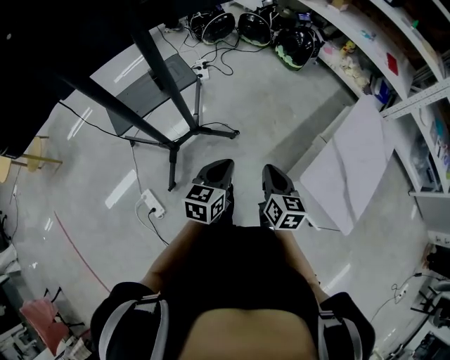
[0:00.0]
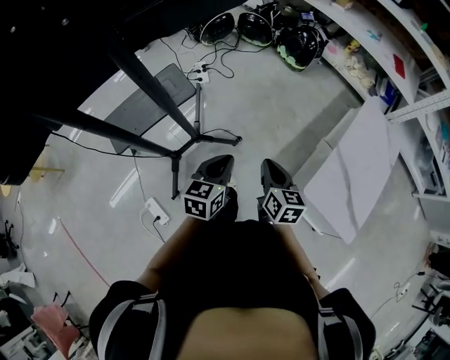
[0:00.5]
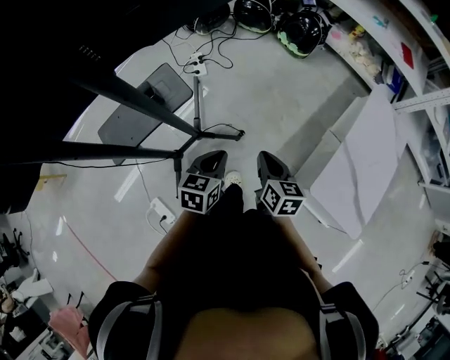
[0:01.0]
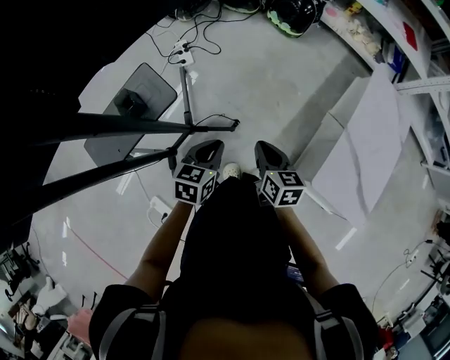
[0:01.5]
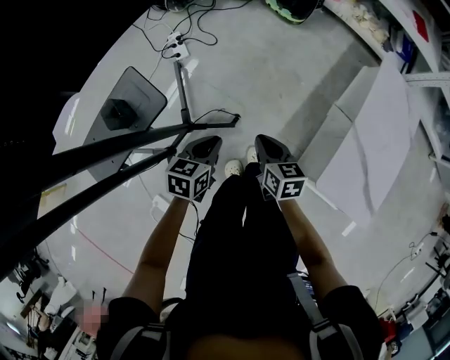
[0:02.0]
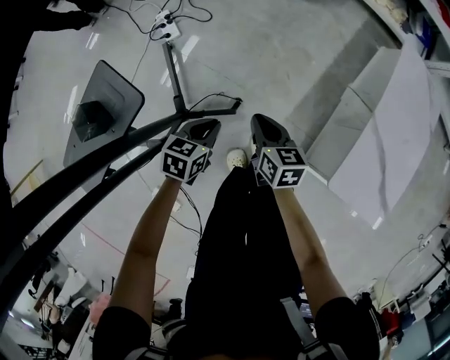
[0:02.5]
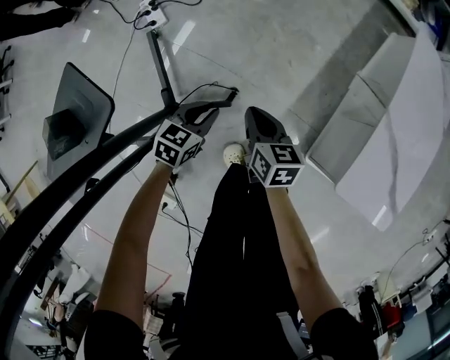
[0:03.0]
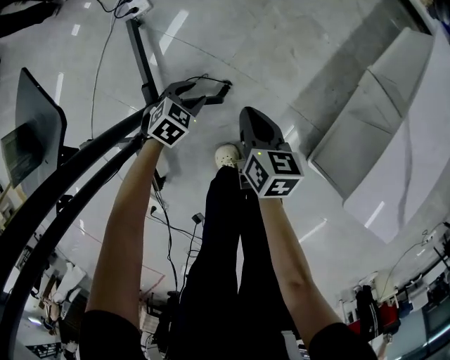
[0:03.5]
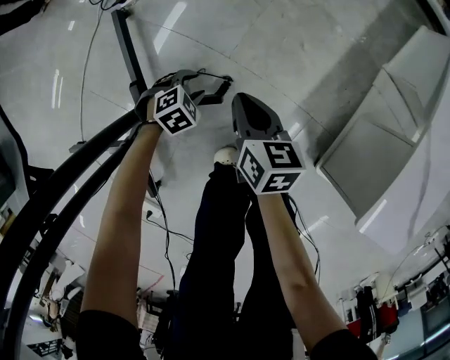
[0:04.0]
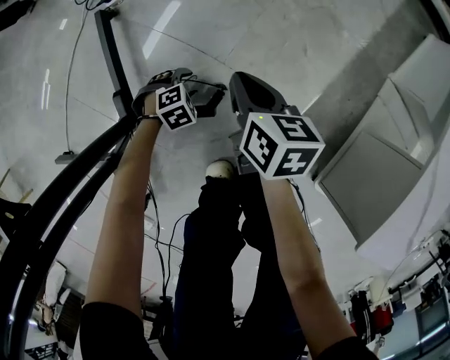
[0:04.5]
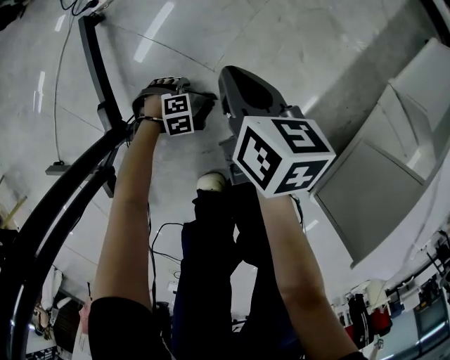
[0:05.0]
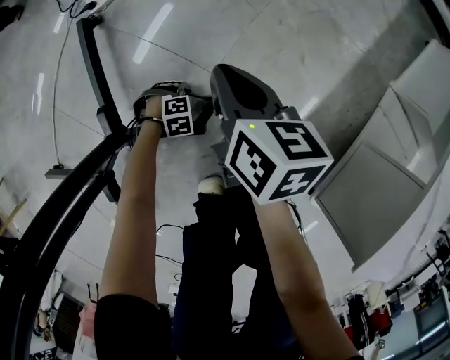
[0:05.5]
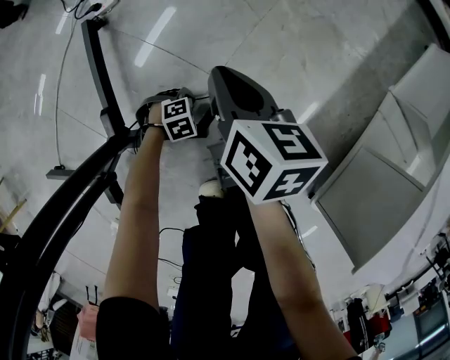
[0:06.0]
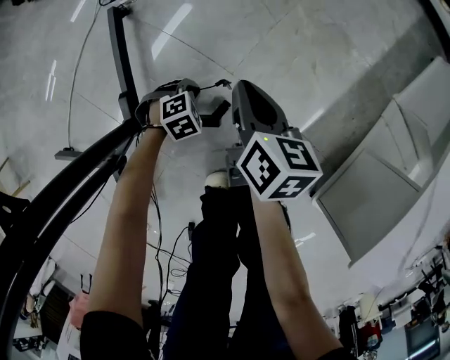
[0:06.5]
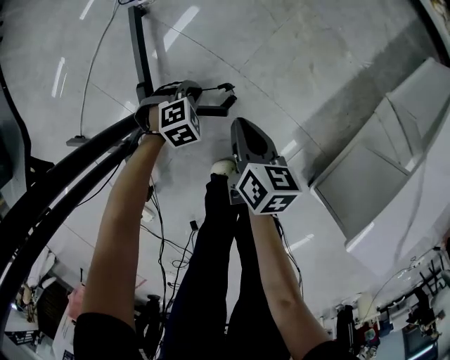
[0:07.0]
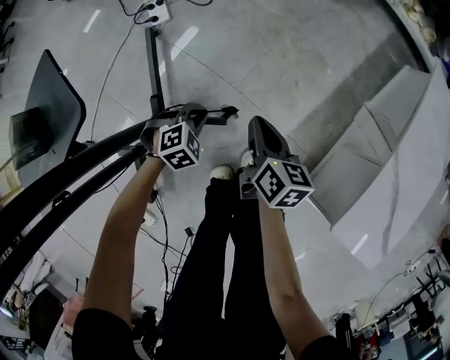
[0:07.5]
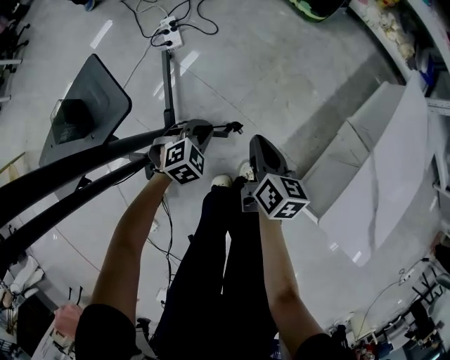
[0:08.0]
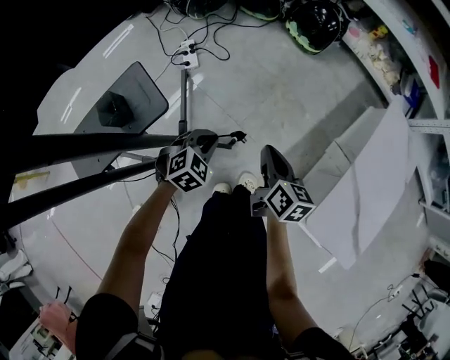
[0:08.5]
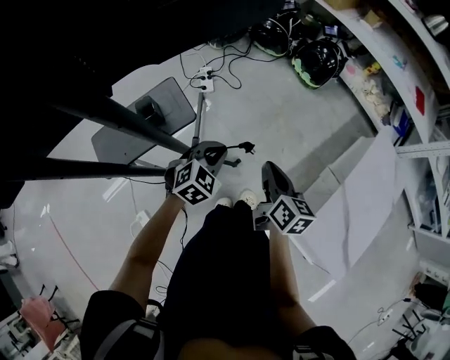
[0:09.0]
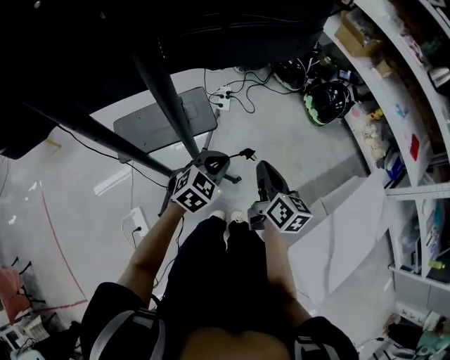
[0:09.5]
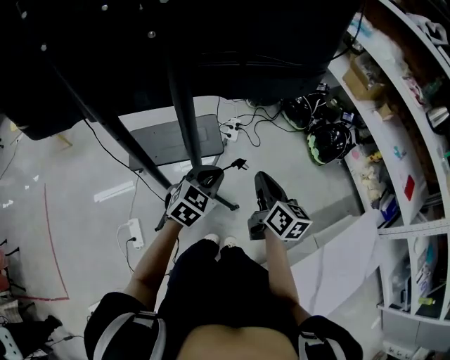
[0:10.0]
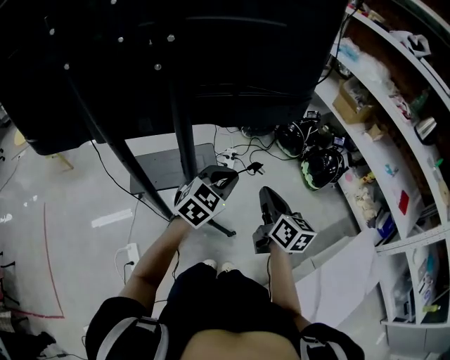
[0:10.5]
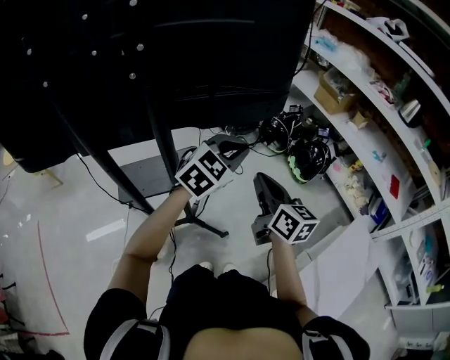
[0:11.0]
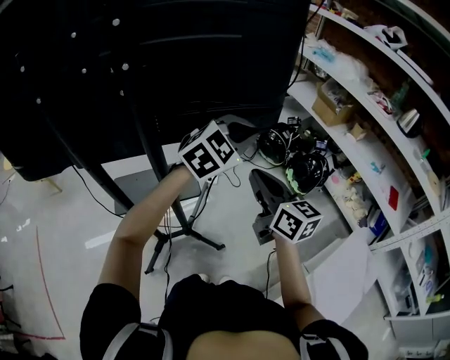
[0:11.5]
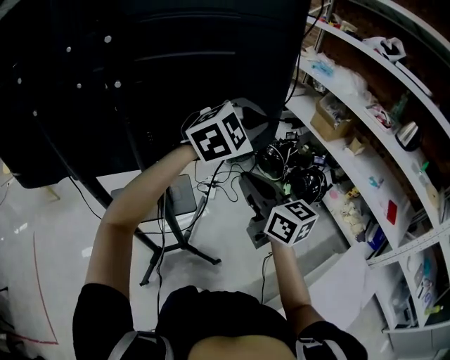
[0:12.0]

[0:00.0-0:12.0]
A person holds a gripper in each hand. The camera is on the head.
0:00.0 to 0:02.0: The grippers both shift forward and downward by some 30 cm. The left gripper rotates approximately 20 degrees.
0:02.0 to 0:04.0: The left gripper moves downward, some 50 cm, rotates around the line of its fingers by approximately 50 degrees, clockwise from behind, and opens up; the right gripper shifts roughly 35 cm downward.
0:04.0 to 0:06.0: The left gripper heads downward, covering approximately 20 cm, and closes. The right gripper ends up some 10 cm from where it was.
0:06.0 to 0:08.0: The left gripper goes approximately 50 cm upward, and turns by some 30 degrees, while the right gripper moves upward, some 25 cm.
0:08.0 to 0:10.0: The grippers both shift upward by about 40 cm. The right gripper turns by some 40 degrees, while the left gripper swivels roughly 50 degrees.
0:10.0 to 0:12.0: The right gripper is displaced upward by roughly 20 cm, and rotates about 30 degrees. Meanwhile the left gripper shifts some 40 cm upward, forward and to the right, and changes its angle by some 40 degrees.

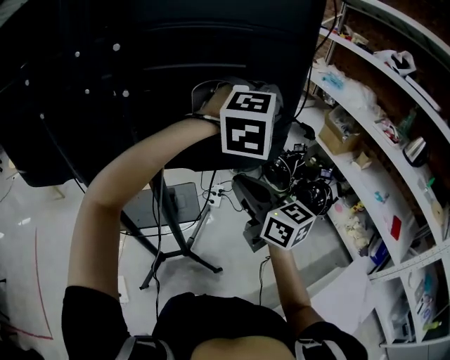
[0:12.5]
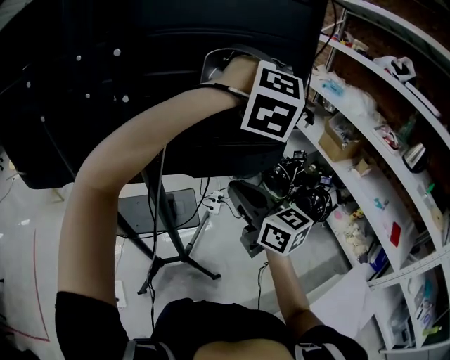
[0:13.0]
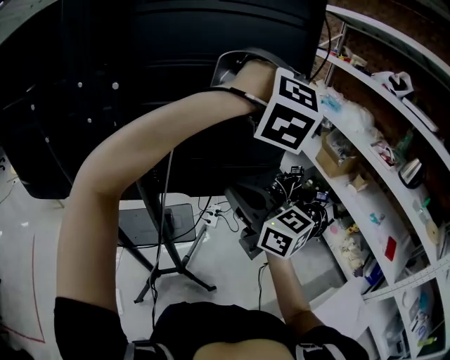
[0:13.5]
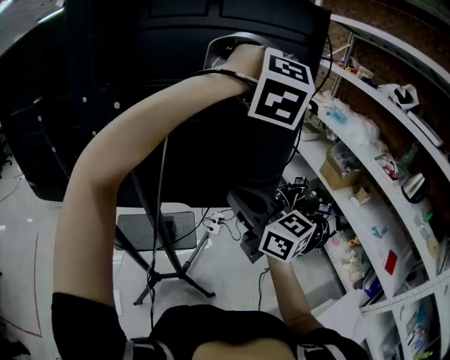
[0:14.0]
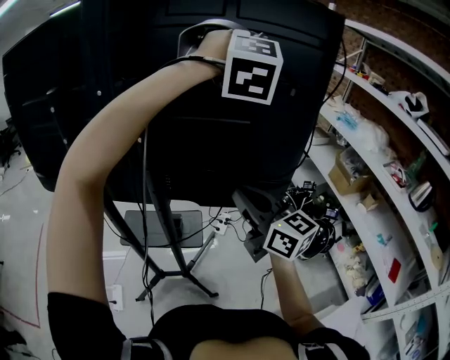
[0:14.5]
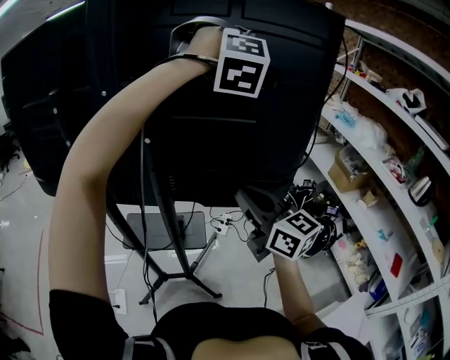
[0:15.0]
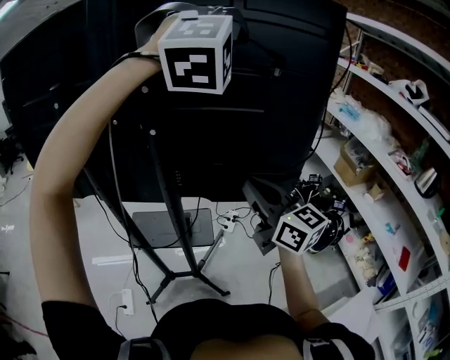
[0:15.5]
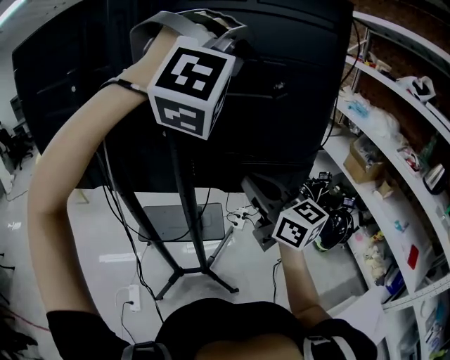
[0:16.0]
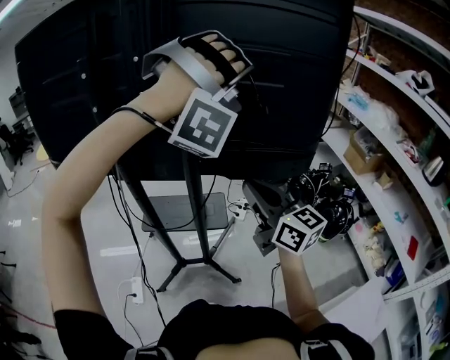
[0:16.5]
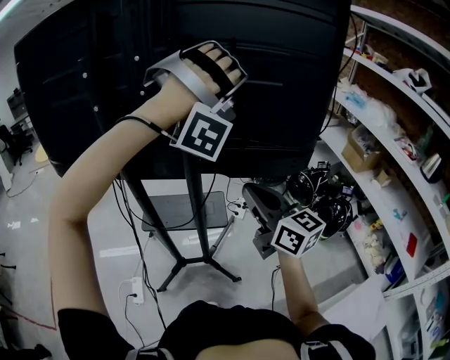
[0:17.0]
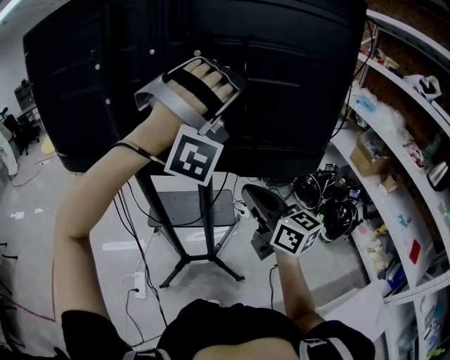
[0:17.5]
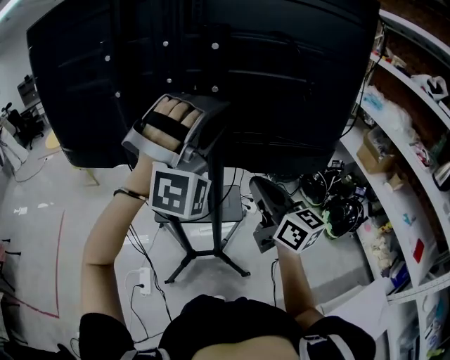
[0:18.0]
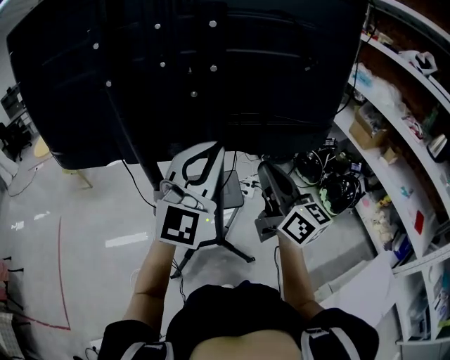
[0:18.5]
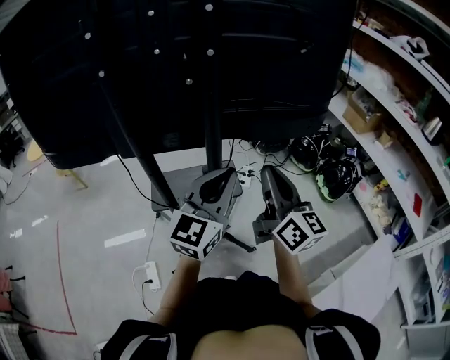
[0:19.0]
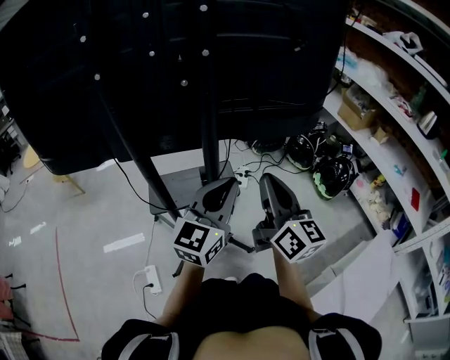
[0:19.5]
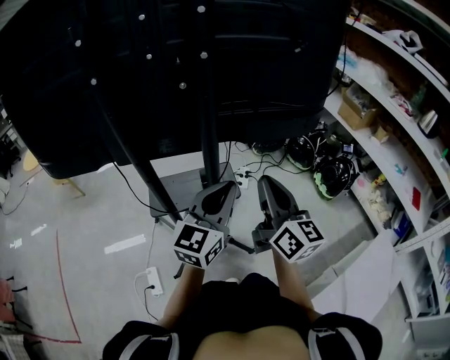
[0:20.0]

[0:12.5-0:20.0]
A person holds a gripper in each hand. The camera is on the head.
0:12.5 to 0:14.5: The right gripper shifts some 10 cm upward; the left gripper moves upward and forward, some 25 cm, and turns by about 30 degrees.
0:14.5 to 0:16.5: The left gripper shifts roughly 20 cm to the left, backward and downward, and turns by some 40 degrees, while the right gripper heads to the left and downward, covering some 10 cm.
0:16.5 to 0:18.0: The right gripper moves about 5 cm. The left gripper heads to the left and downward, covering roughly 15 cm, rotates approximately 30 degrees, and opens.
0:18.0 to 0:20.0: The left gripper moves downward, some 20 cm, rotates around the line of its fingers by about 100 degrees, counterclockwise from behind, and closes. The right gripper heads downward, covering some 5 cm, and rotates about 20 degrees.

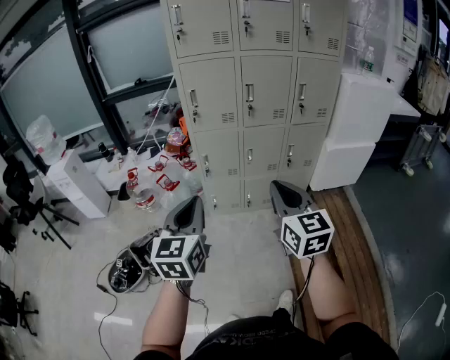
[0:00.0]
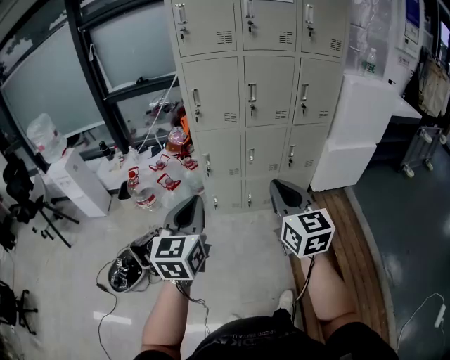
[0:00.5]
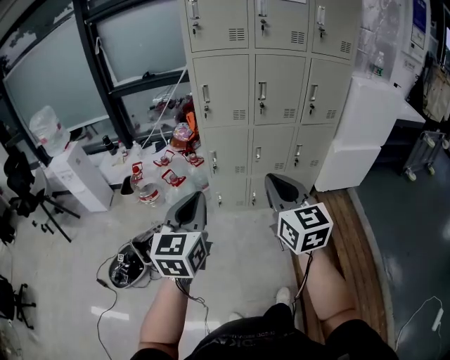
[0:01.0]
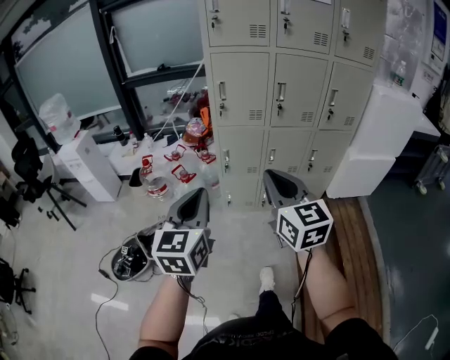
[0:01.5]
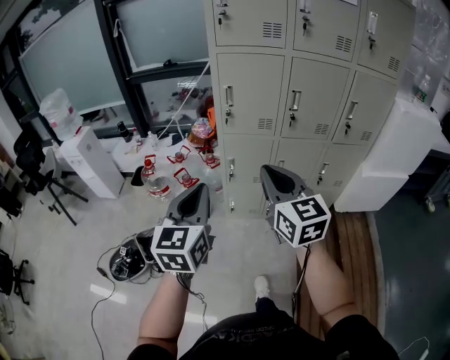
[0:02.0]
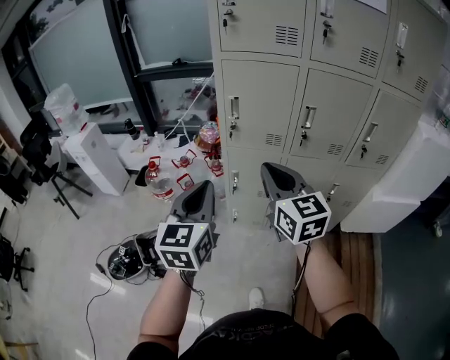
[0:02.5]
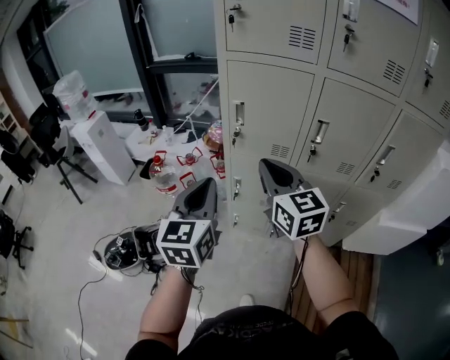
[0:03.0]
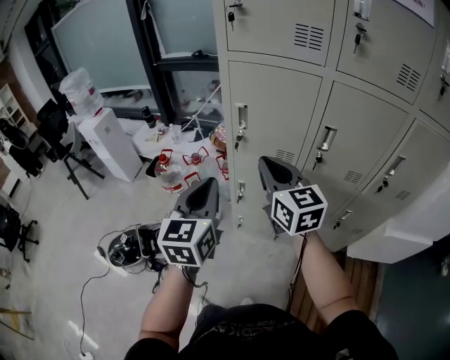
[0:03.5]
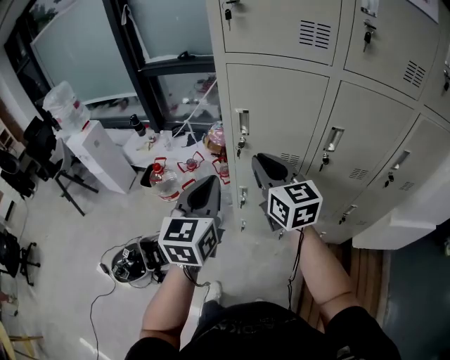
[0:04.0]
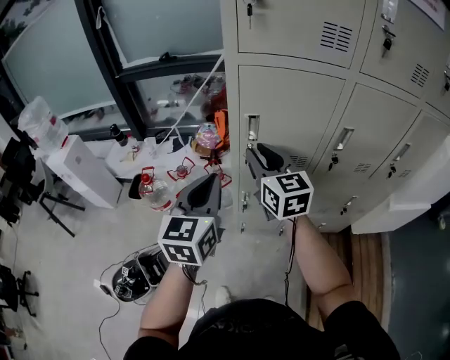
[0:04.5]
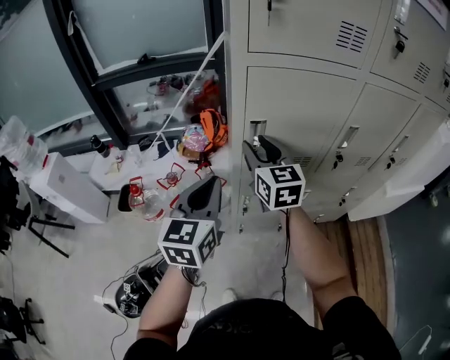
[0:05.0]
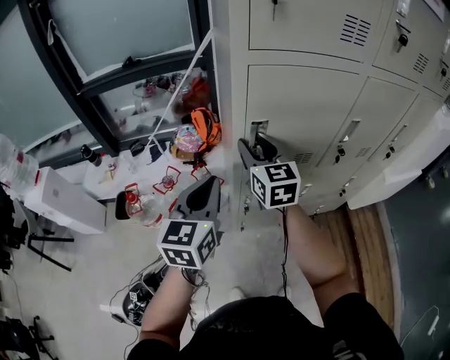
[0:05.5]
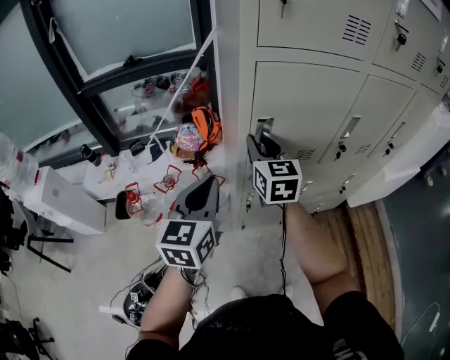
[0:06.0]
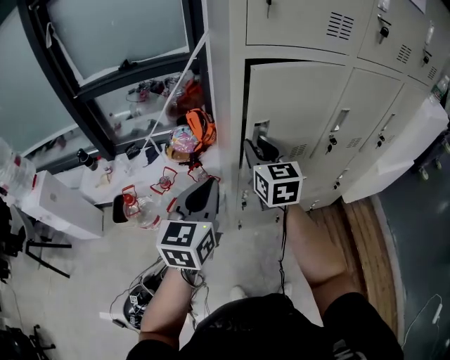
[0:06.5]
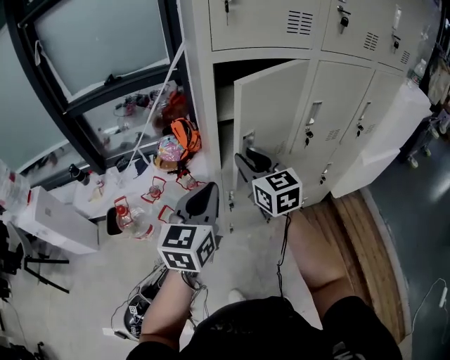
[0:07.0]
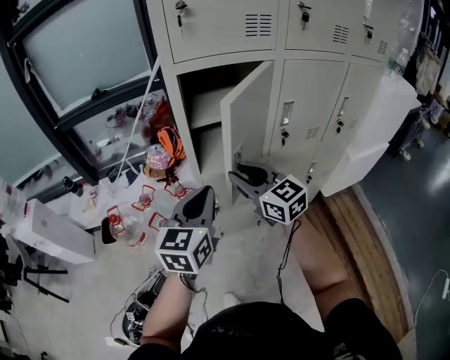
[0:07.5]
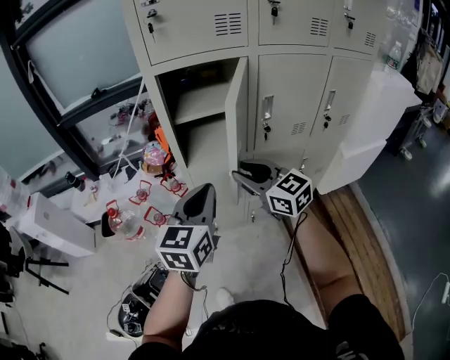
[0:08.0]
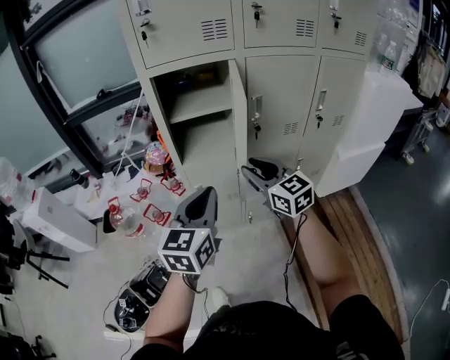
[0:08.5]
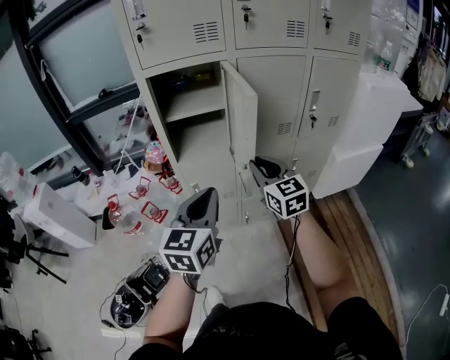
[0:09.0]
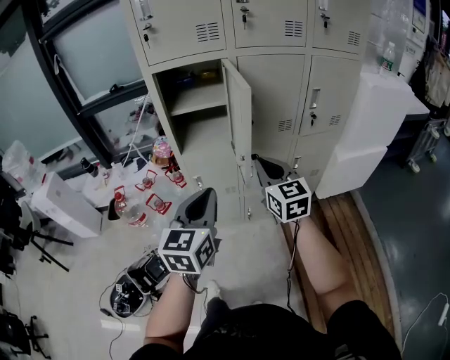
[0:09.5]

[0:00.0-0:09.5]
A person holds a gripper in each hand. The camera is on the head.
0:00.0 to 0:02.0: The left gripper goes roughly 15 cm forward, while the right gripper moves forward and to the left, roughly 20 cm.
0:02.0 to 0:04.0: The two grippers go about 30 cm forward.
0:04.0 to 0:05.5: Both grippers travel together forward and to the left, approximately 20 cm. The left gripper rotates approximately 20 degrees. Meanwhile the right gripper turns by about 30 degrees, and opens its fingers.
0:05.5 to 0:07.5: The right gripper moves backward and to the right, some 20 cm. The left gripper travels to the right and backward by some 15 cm.
0:07.5 to 0:09.5: The right gripper moves to the right and backward, roughly 25 cm, and closes. The left gripper heads backward and to the right, covering about 25 cm.
